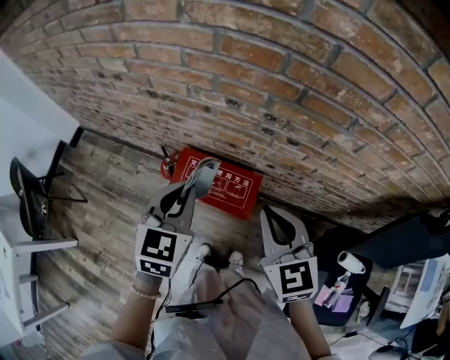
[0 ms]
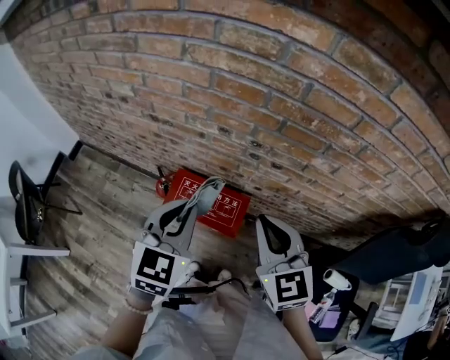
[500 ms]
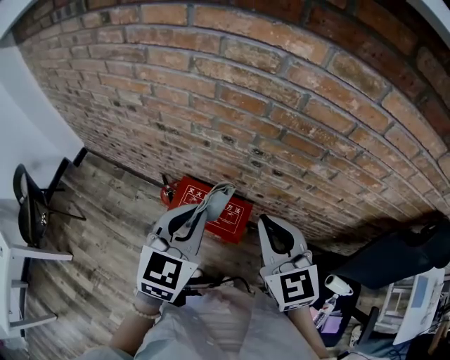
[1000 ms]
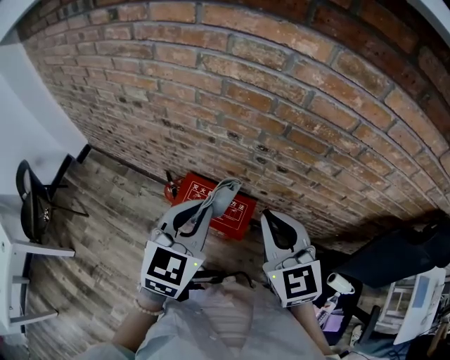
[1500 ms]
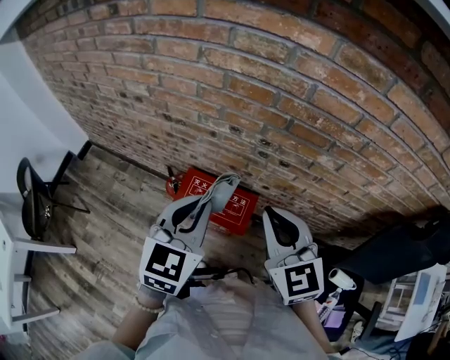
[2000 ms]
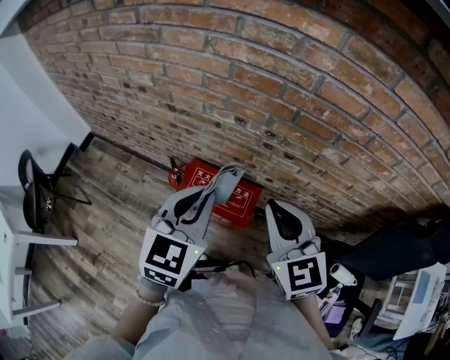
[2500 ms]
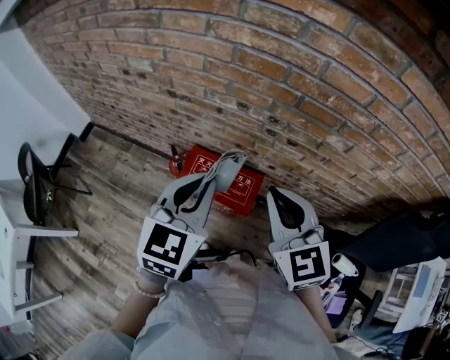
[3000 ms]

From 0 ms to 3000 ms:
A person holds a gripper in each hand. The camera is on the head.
From 0 ms to 1500 ms: Both grippers move upward, approximately 10 cm.
From 1500 ms to 3000 ms: The grippers stay close to where they were, moving slightly.

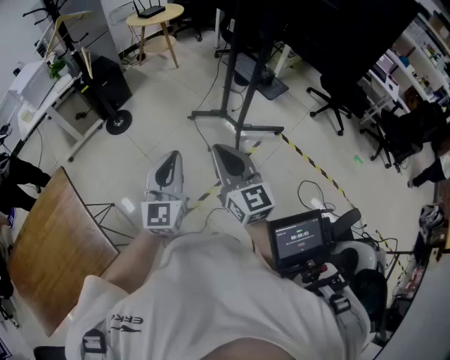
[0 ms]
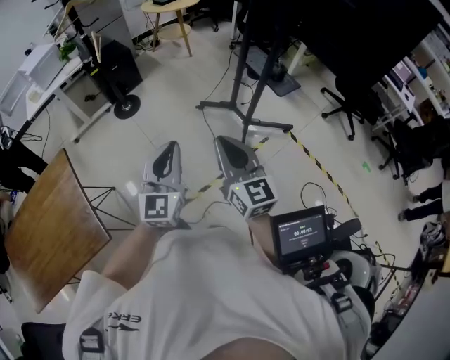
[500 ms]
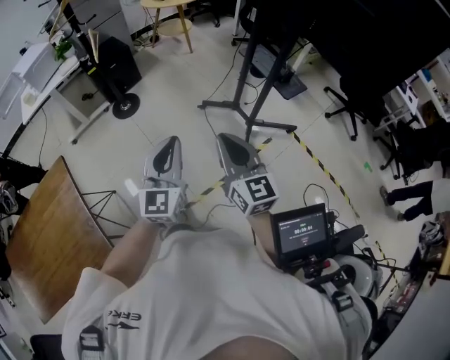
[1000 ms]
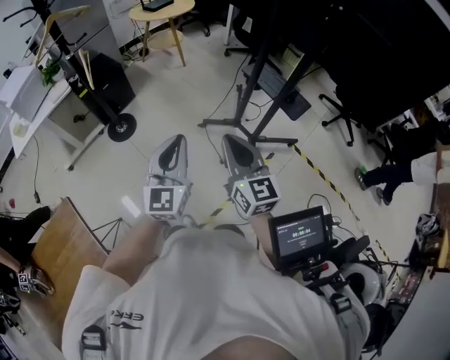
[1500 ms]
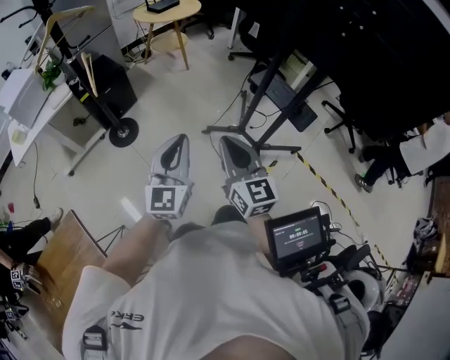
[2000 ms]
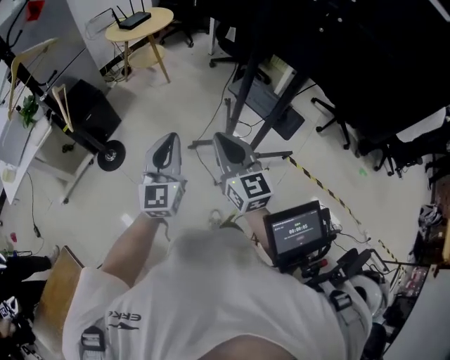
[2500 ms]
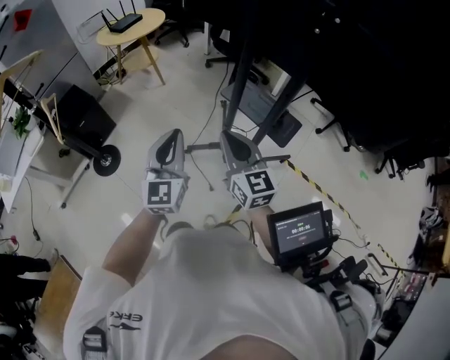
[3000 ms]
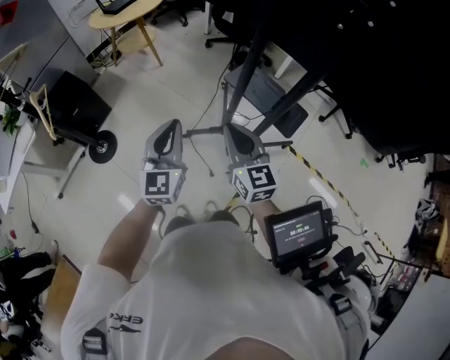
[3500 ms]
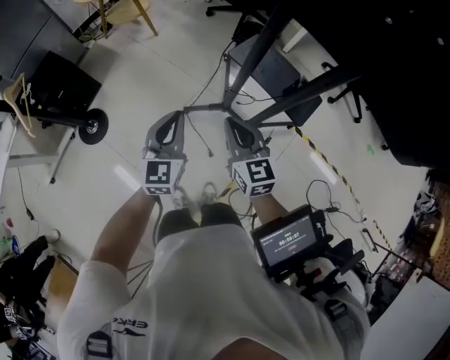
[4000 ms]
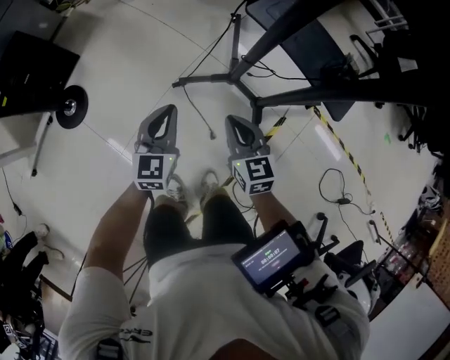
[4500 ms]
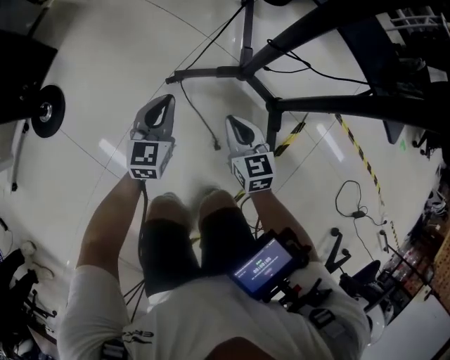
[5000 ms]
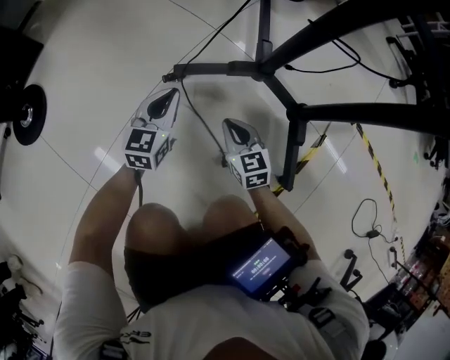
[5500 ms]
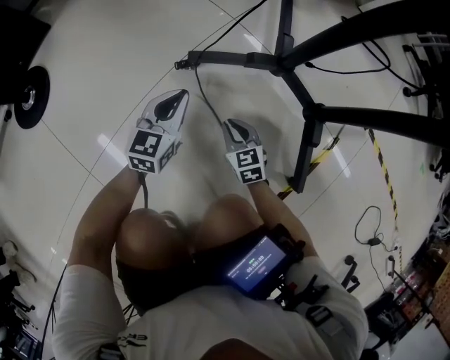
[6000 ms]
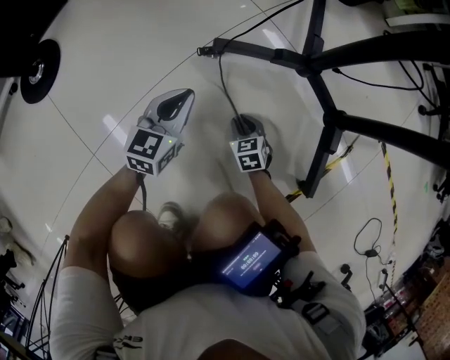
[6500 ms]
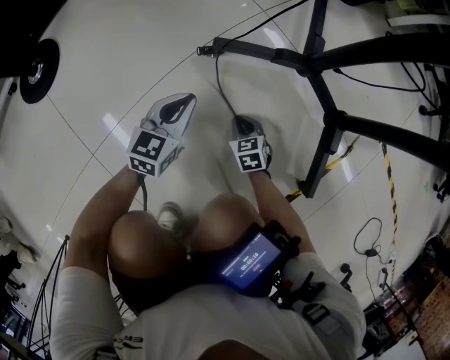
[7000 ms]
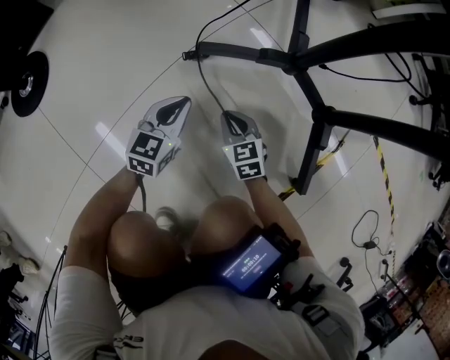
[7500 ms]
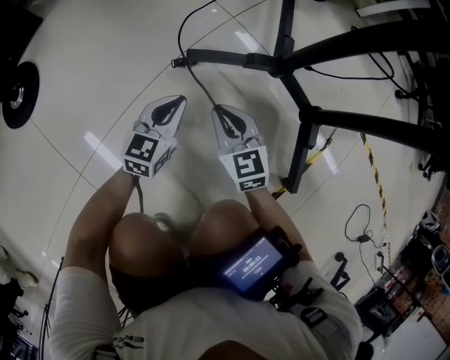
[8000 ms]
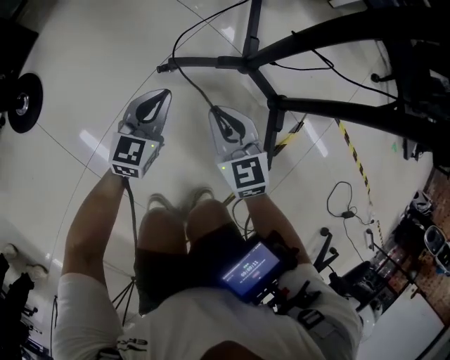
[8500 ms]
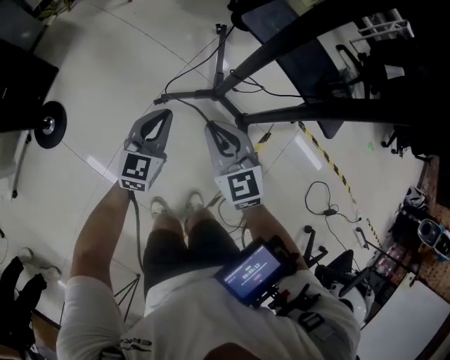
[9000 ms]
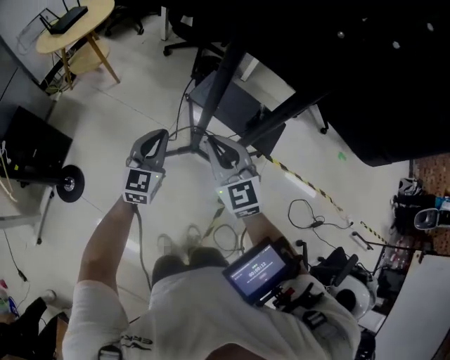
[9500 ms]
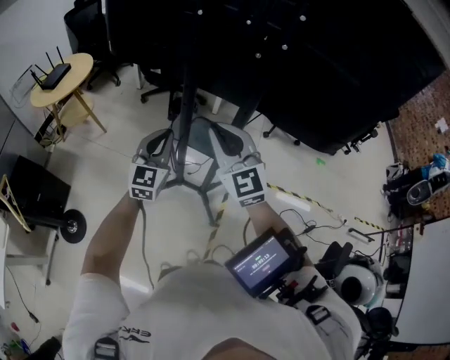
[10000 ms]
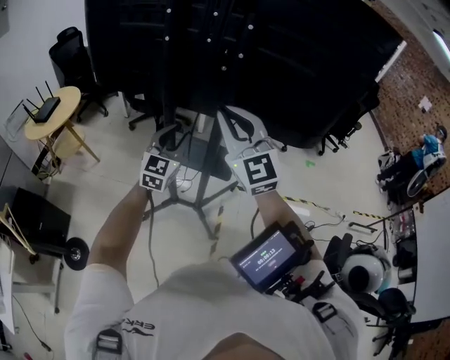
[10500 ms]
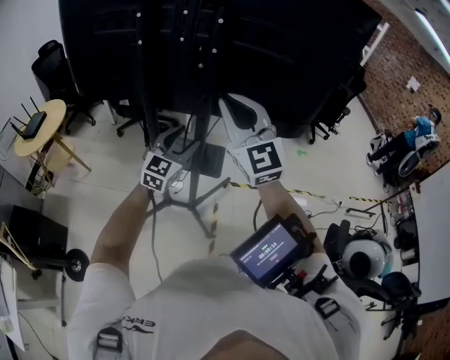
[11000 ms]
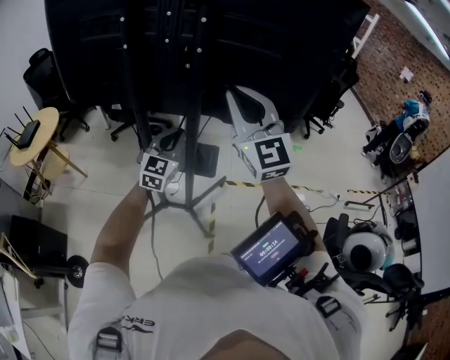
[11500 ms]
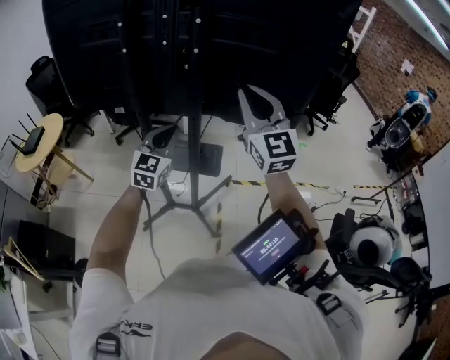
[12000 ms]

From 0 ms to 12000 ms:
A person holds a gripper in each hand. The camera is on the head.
From 0 ms to 2000 ms: Both grippers move forward, approximately 30 cm.
From 2000 ms to 4000 ms: The two grippers go some 35 cm forward, downward and to the right.
From 4000 ms to 6000 ms: Both grippers move downward, roughly 70 cm. The right gripper turns by some 30 degrees.
From 6000 ms to 8000 ms: The right gripper travels upward by some 10 cm.
From 8000 ms to 10000 ms: The grippers both shift upward by roughly 90 cm. The right gripper changes its angle by roughly 40 degrees. The left gripper swivels some 30 degrees.
From 10000 ms to 12000 ms: The grippers both shift to the right and upward by approximately 20 cm. The left gripper opens and closes again, while the right gripper rotates roughly 30 degrees.

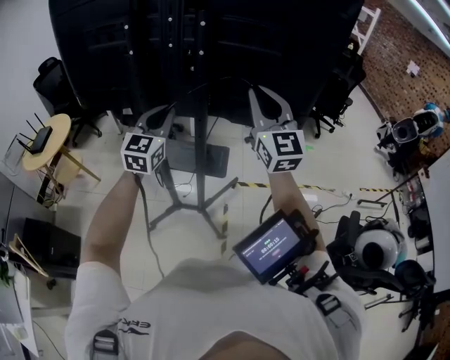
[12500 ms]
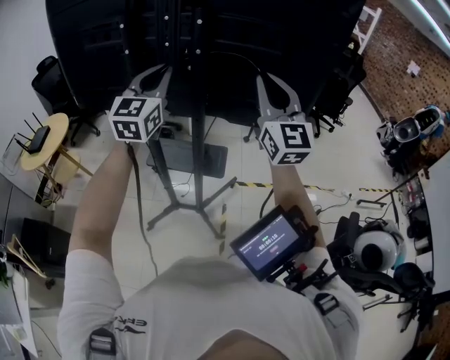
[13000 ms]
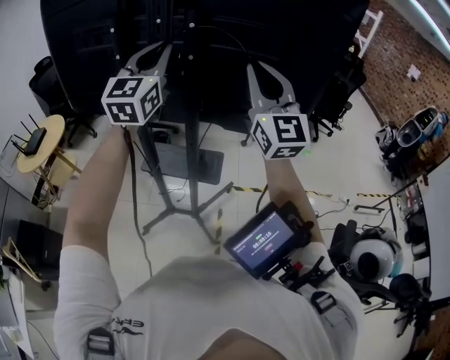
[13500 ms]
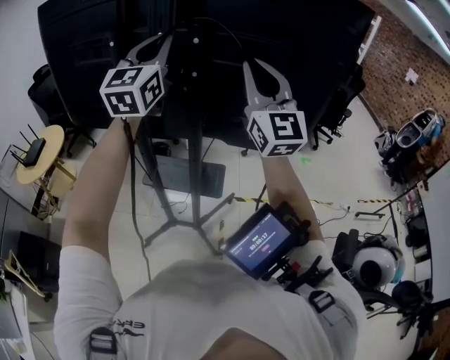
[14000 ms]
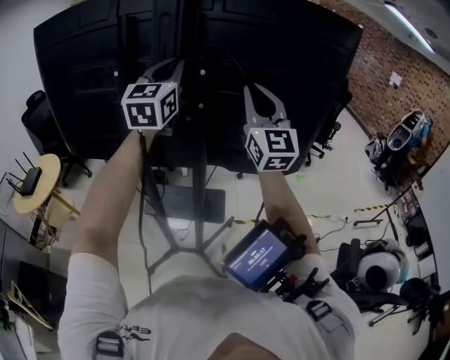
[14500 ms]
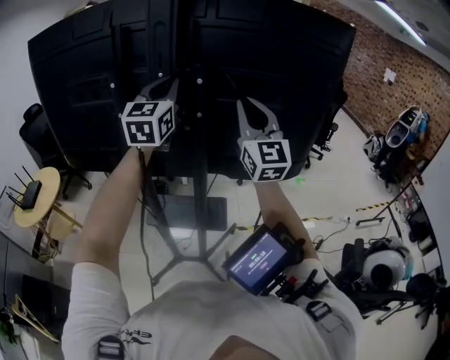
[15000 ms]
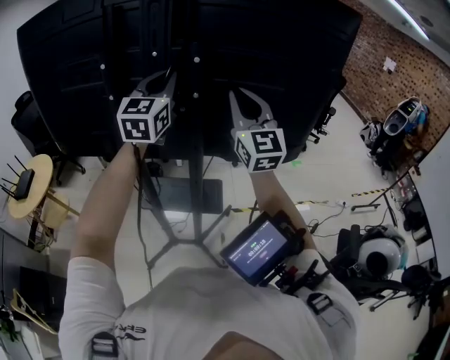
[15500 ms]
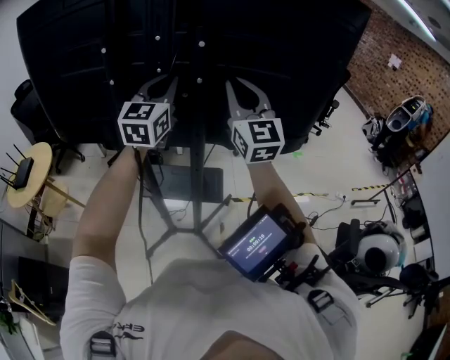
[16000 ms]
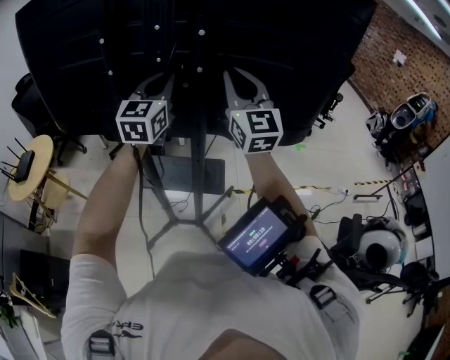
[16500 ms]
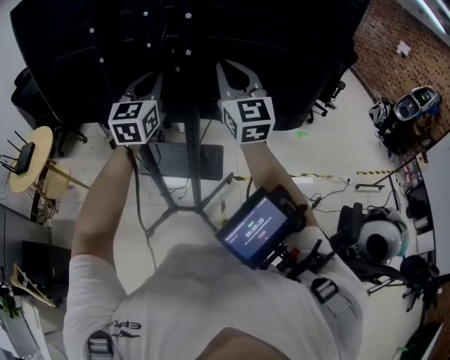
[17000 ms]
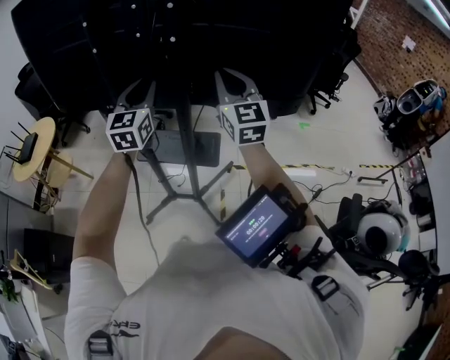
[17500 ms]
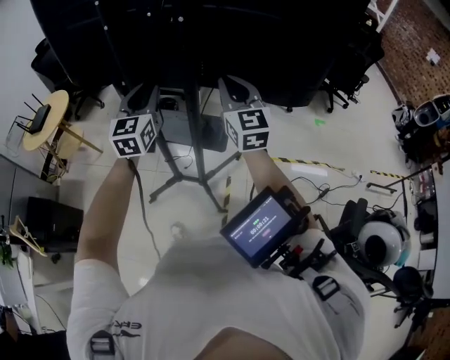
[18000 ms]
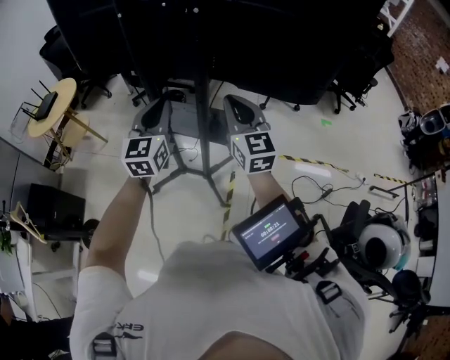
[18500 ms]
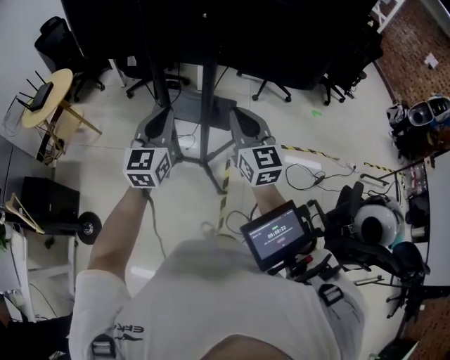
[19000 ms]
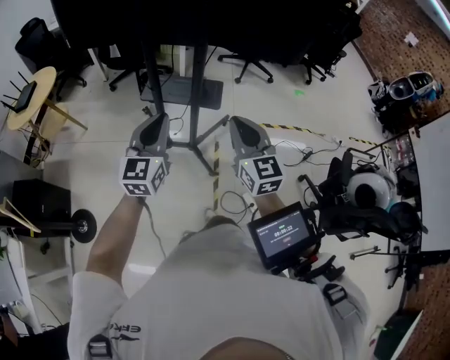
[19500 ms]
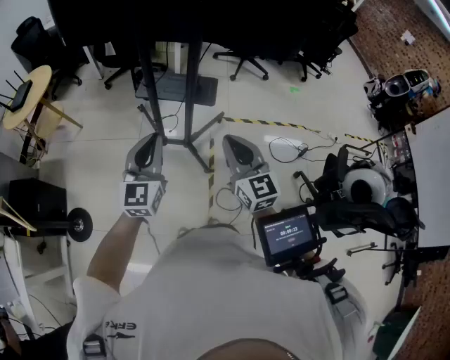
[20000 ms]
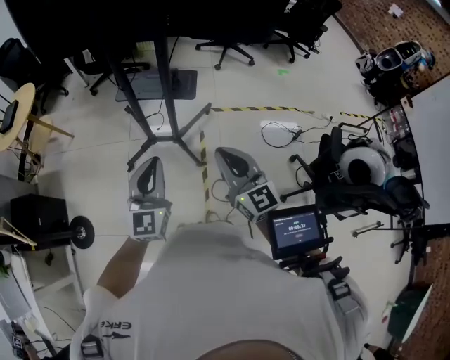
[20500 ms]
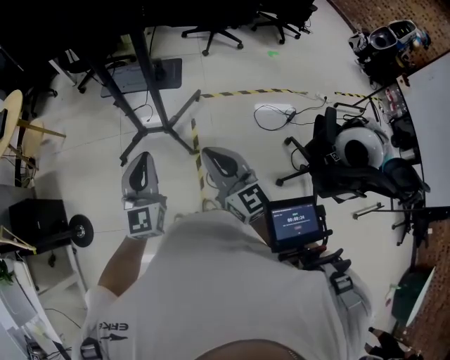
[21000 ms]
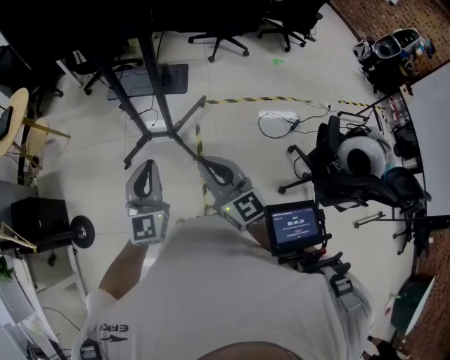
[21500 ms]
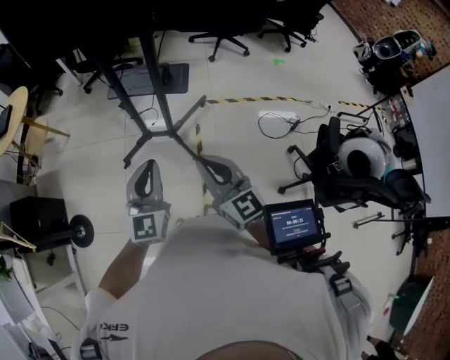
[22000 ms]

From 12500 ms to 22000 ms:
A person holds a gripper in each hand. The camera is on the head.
From 12500 ms to 14500 ms: The left gripper heads upward and forward, covering approximately 25 cm; the right gripper moves forward and upward, some 15 cm.
From 14500 ms to 16500 ms: The left gripper heads downward, covering about 15 cm. Meanwhile the right gripper is displaced downward by approximately 5 cm.
From 16500 ms to 18000 ms: Both grippers travel together downward and backward, roughly 15 cm.
From 18000 ms to 20000 ms: The right gripper is displaced backward and downward by some 35 cm. The left gripper moves backward, some 30 cm.
From 20000 ms to 22000 ms: The left gripper travels to the right and backward by some 10 cm; the right gripper goes about 5 cm backward.

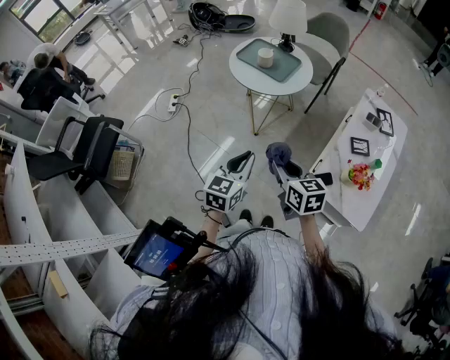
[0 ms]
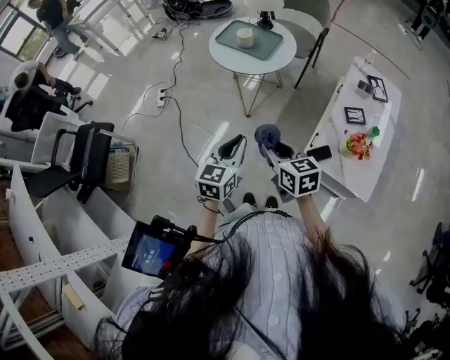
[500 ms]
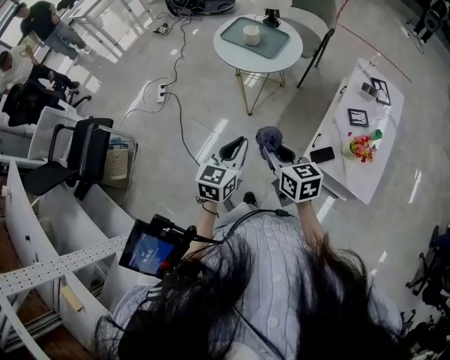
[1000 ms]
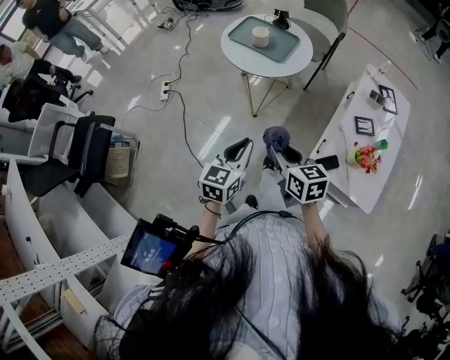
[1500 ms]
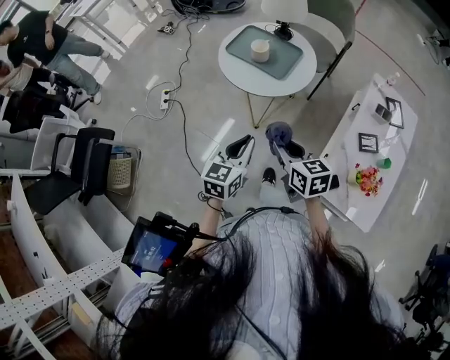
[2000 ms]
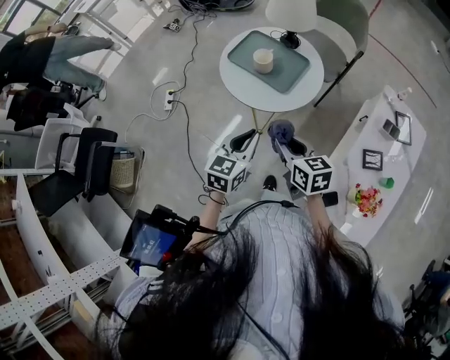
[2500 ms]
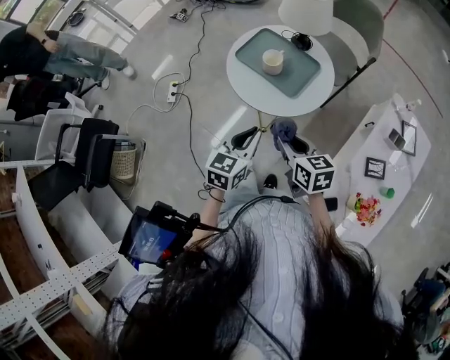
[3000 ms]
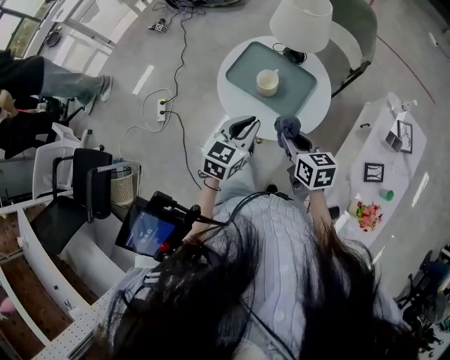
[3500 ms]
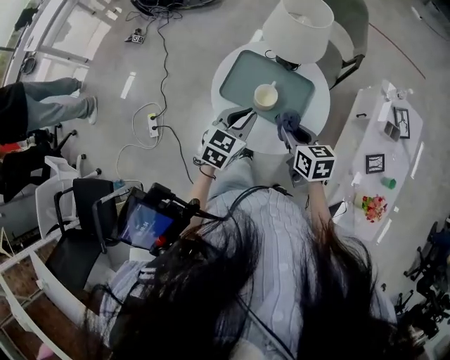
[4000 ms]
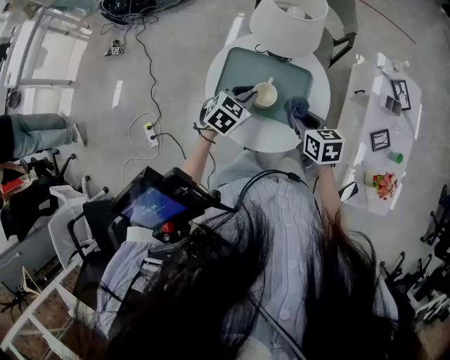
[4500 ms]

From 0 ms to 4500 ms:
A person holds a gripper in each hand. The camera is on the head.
From 0 ms to 2000 ms: Both grippers move forward, some 15 cm.
From 2000 ms to 4500 ms: The left gripper ends up about 50 cm from where it was, and changes its angle by some 50 degrees; the right gripper ends up roughly 40 cm from where it was, and changes its angle by some 30 degrees.
